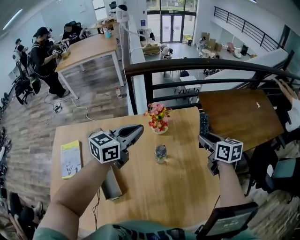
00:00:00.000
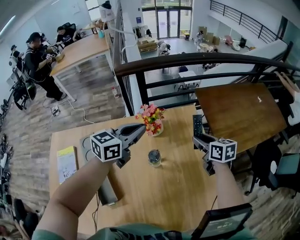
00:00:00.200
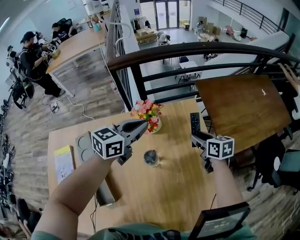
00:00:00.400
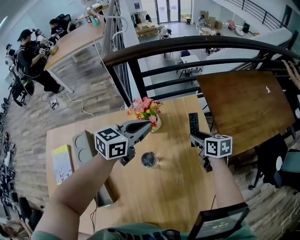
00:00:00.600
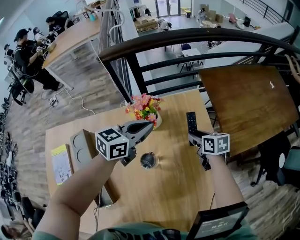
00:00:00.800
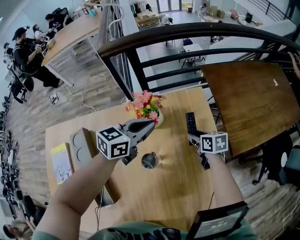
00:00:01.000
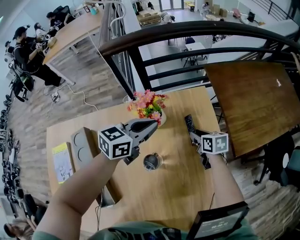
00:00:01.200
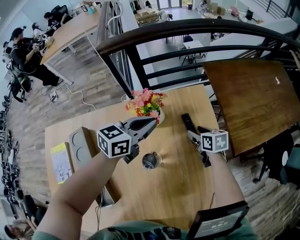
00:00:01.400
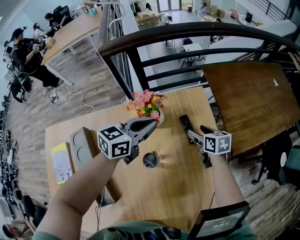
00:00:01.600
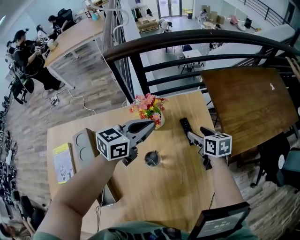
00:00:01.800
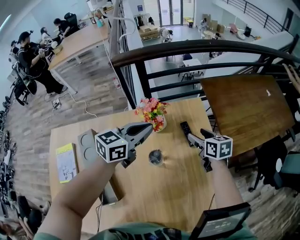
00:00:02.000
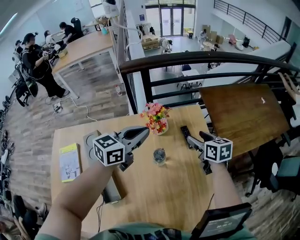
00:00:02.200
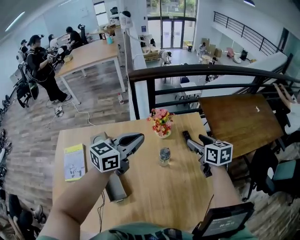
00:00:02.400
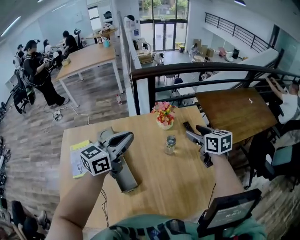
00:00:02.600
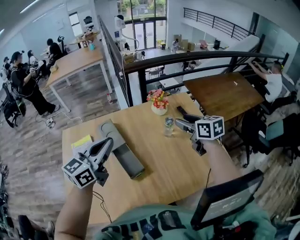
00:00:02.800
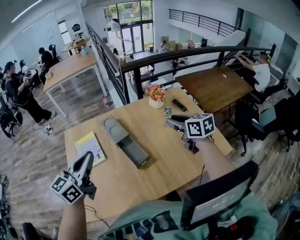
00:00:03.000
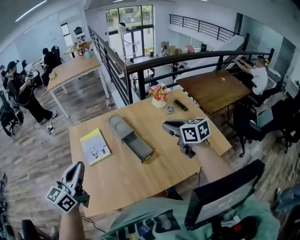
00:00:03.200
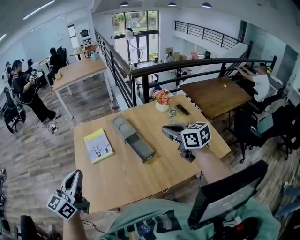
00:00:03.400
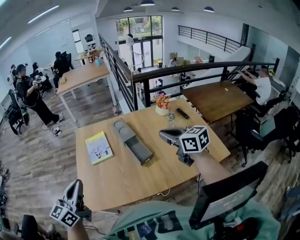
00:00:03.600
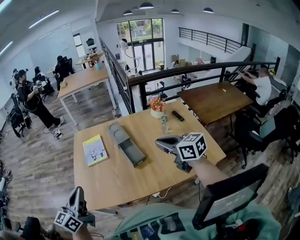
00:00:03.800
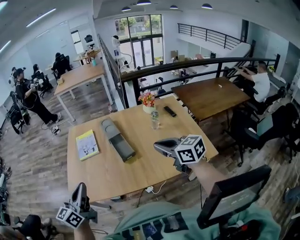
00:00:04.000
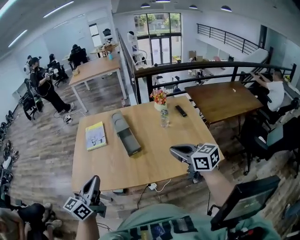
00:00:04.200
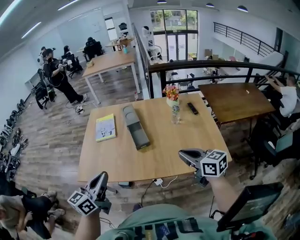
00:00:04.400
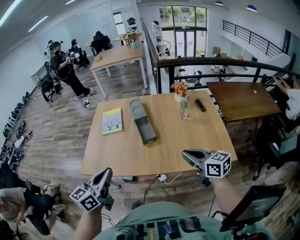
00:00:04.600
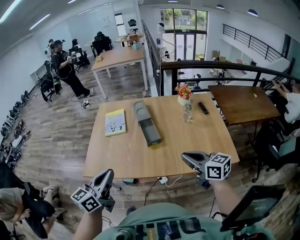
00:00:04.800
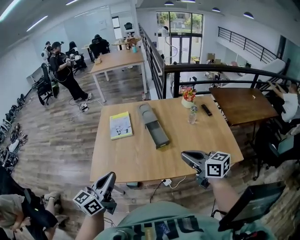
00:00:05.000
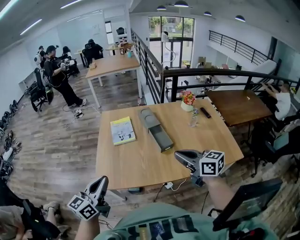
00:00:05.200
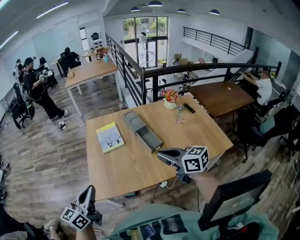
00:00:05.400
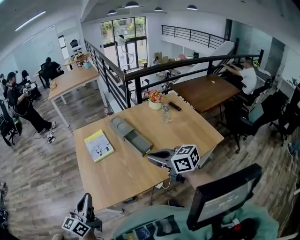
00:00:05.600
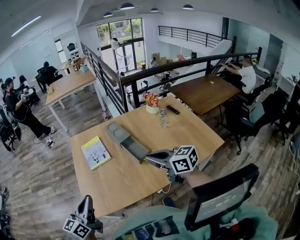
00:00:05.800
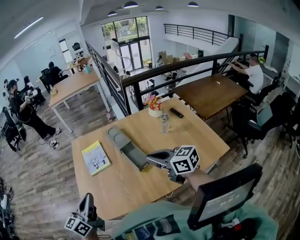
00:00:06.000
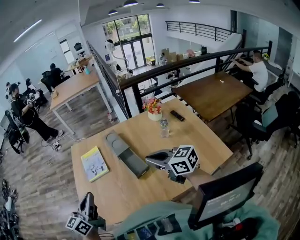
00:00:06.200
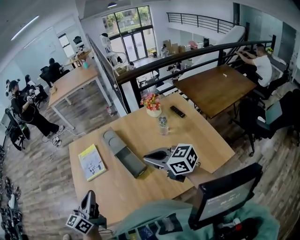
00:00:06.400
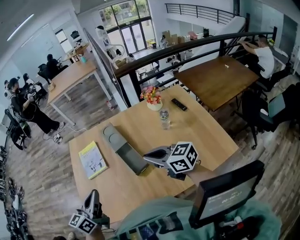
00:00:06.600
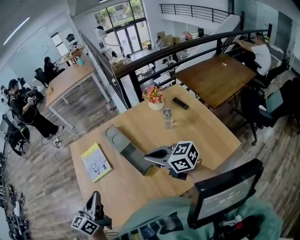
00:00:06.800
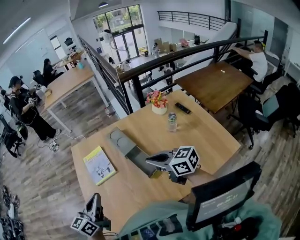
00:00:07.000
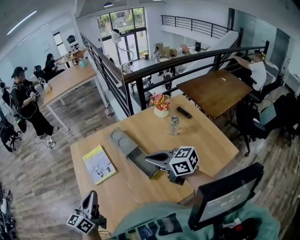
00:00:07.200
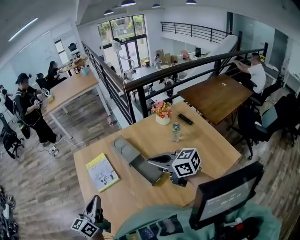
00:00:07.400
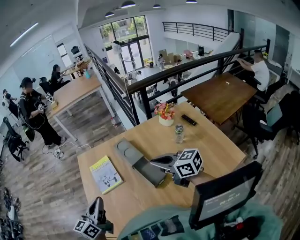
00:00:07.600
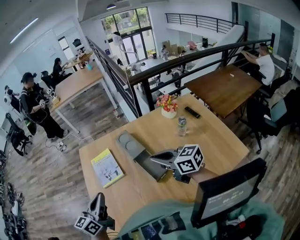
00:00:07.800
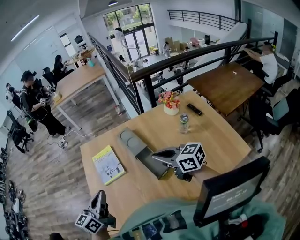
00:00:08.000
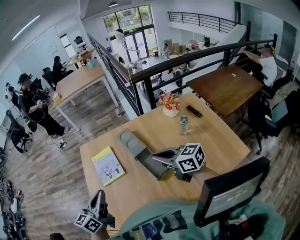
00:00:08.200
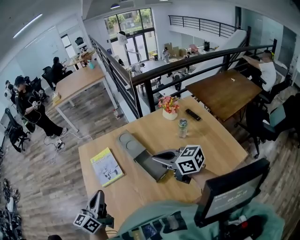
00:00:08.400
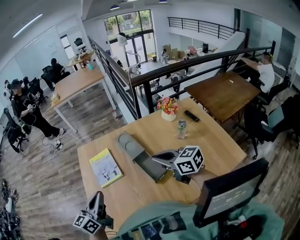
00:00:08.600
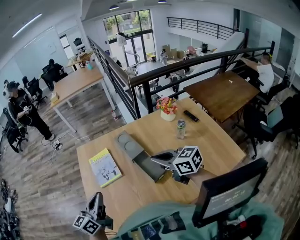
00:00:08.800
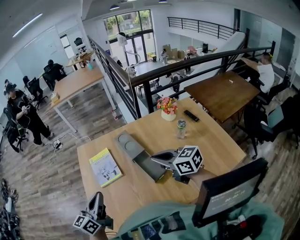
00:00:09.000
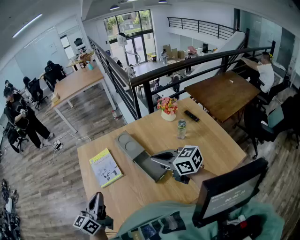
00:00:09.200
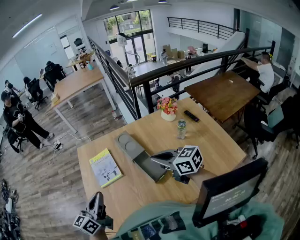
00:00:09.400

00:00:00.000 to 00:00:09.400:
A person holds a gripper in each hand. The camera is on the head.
00:00:00.000 to 00:00:01.600: The left gripper moves downward, forward and to the right, approximately 20 cm, while the right gripper shifts about 20 cm downward and forward, and opens up.
00:00:01.600 to 00:00:03.200: The pair of grippers is taken backward and to the left, roughly 60 cm. The left gripper rotates about 30 degrees, while the right gripper heads upward, covering approximately 30 cm, turns by some 20 degrees, and closes up.
00:00:03.200 to 00:00:04.800: The right gripper is displaced backward by roughly 25 cm, and changes its angle by approximately 20 degrees. The left gripper shifts some 25 cm backward and to the right.
00:00:04.800 to 00:00:06.200: Both grippers travel together forward, some 20 cm. The left gripper reaches about 20 cm to the left, then returns; the right gripper goes to the left and returns, approximately 20 cm each way.
00:00:06.200 to 00:00:07.800: The two grippers go some 10 cm forward. The left gripper travels to the right and back again, about 5 cm each way.
00:00:07.800 to 00:00:09.400: The grippers make only small movements.

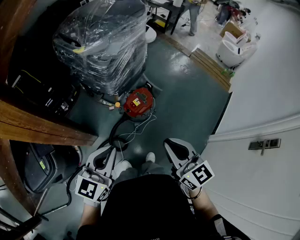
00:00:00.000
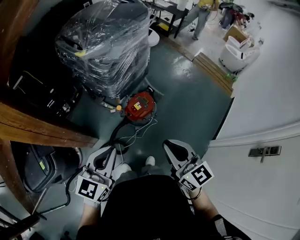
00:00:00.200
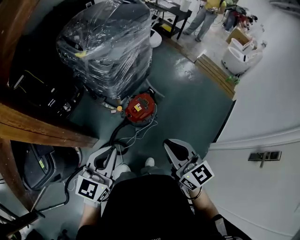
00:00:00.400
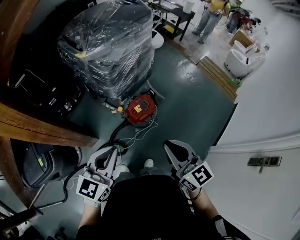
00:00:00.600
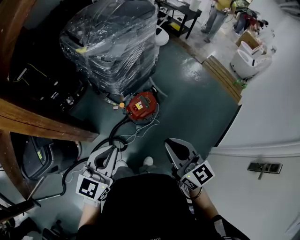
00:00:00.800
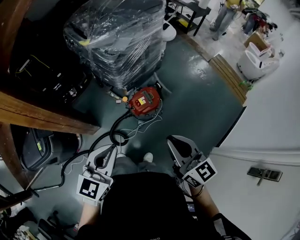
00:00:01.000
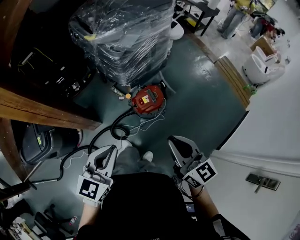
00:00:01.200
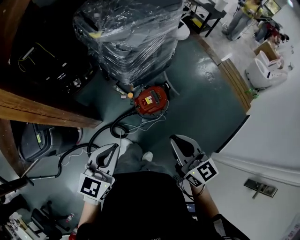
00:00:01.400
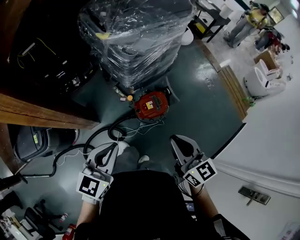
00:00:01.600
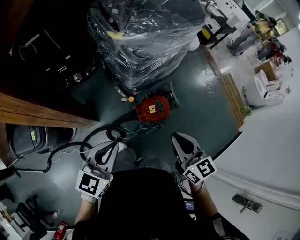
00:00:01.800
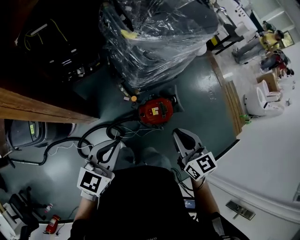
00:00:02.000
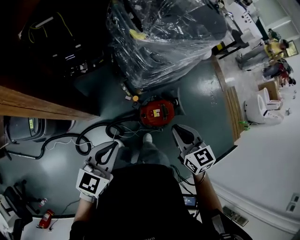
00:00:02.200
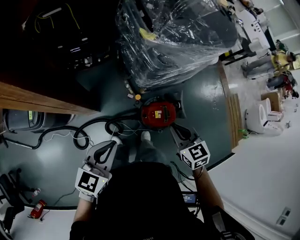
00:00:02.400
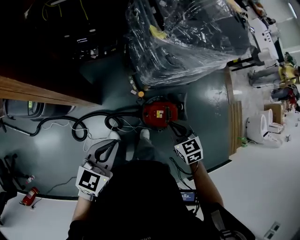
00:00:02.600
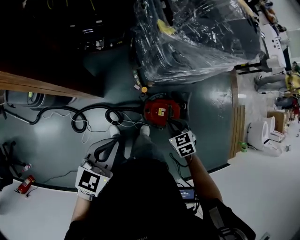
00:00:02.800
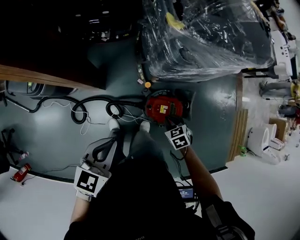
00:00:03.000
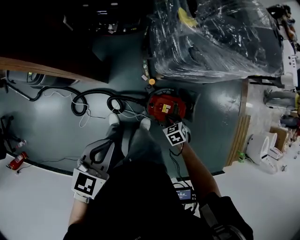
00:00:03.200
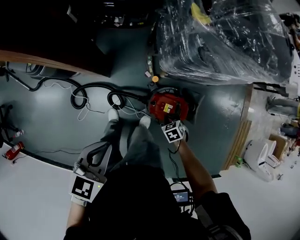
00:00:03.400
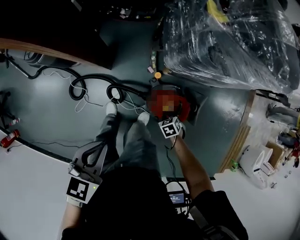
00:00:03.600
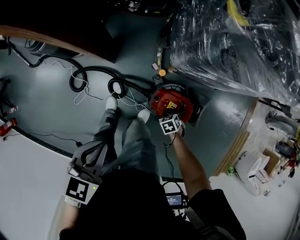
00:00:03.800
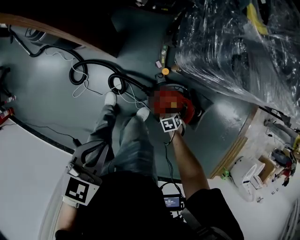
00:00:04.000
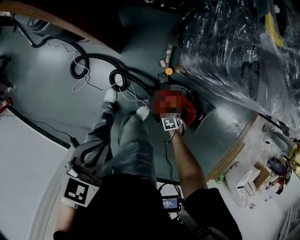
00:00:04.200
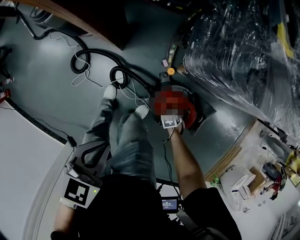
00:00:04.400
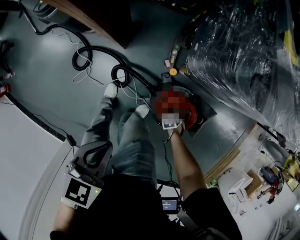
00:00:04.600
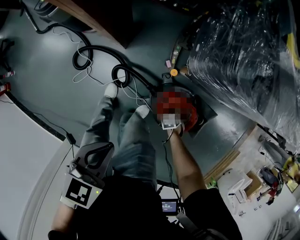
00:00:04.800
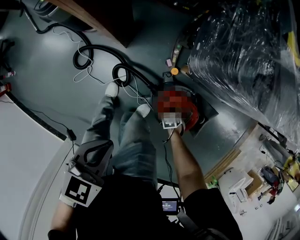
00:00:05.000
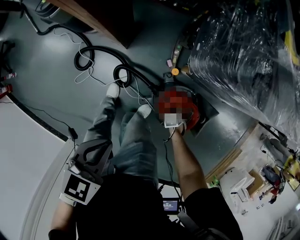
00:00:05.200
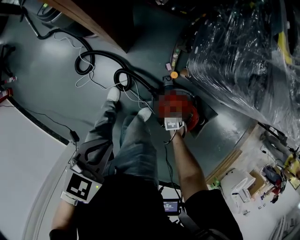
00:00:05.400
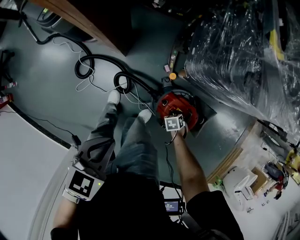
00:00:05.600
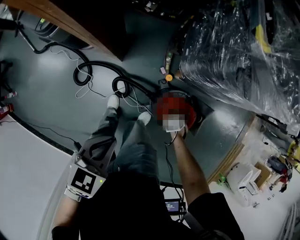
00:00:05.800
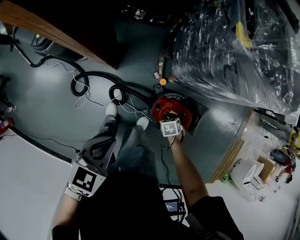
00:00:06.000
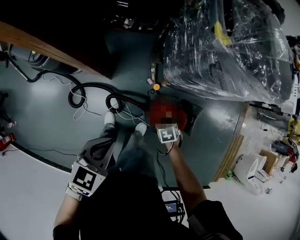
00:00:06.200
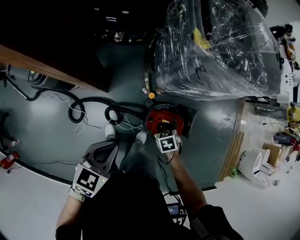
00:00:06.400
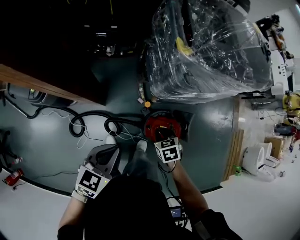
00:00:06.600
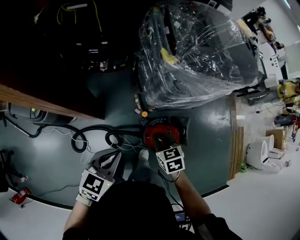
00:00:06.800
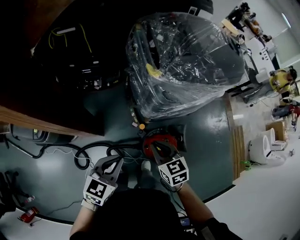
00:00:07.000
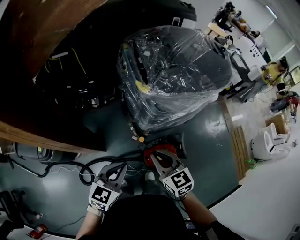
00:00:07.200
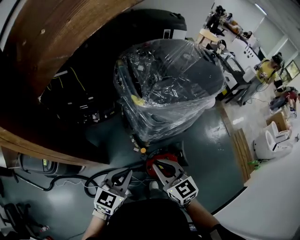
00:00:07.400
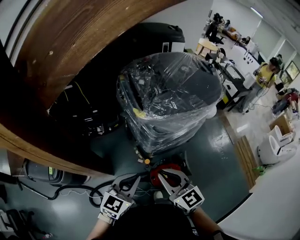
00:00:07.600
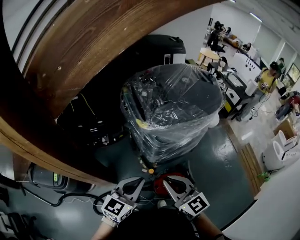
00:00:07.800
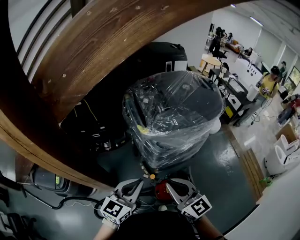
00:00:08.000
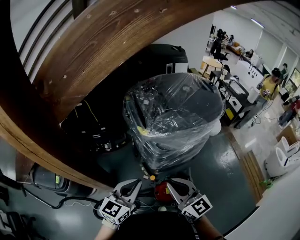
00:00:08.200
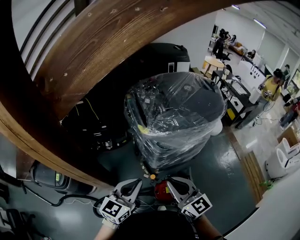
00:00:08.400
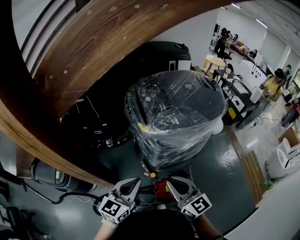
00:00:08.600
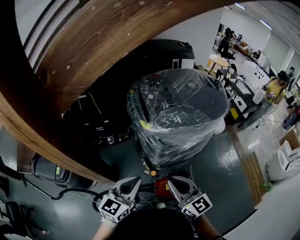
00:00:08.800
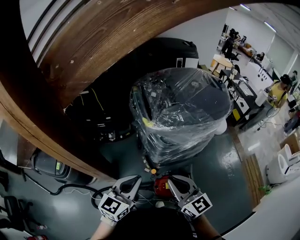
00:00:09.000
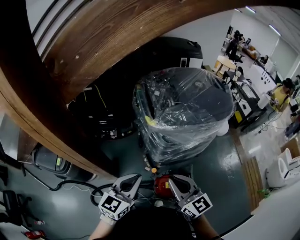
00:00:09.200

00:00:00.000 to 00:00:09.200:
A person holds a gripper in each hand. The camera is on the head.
00:00:00.000 to 00:00:01.600: The left gripper goes approximately 10 cm forward; the right gripper moves forward, about 15 cm.
00:00:01.600 to 00:00:03.000: The right gripper travels downward by approximately 30 cm, and points its fingers about 50 degrees further downward. Meanwhile the left gripper changes place by about 15 cm, and rotates about 30 degrees.
00:00:03.000 to 00:00:04.600: The right gripper heads downward, covering about 35 cm, and swivels some 30 degrees; the left gripper heads downward, covering about 15 cm, and rotates approximately 20 degrees.
00:00:04.600 to 00:00:06.200: The right gripper heads upward, covering roughly 20 cm, while the left gripper goes approximately 5 cm upward.
00:00:06.200 to 00:00:07.600: The left gripper moves upward, some 20 cm, and changes its angle by approximately 40 degrees. The right gripper shifts approximately 50 cm upward, and tips its fingers upward by some 70 degrees.
00:00:07.600 to 00:00:09.200: The right gripper ends up roughly 5 cm from where it was.

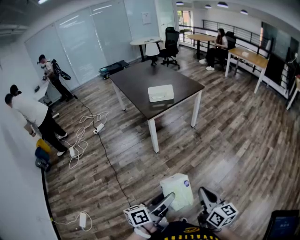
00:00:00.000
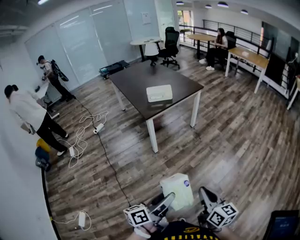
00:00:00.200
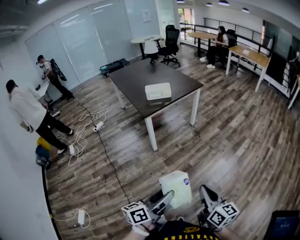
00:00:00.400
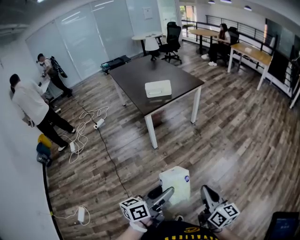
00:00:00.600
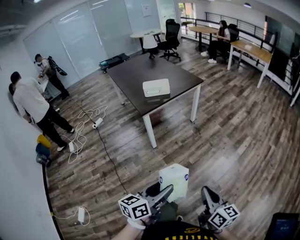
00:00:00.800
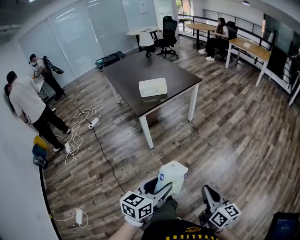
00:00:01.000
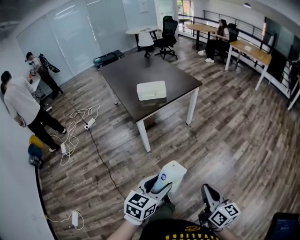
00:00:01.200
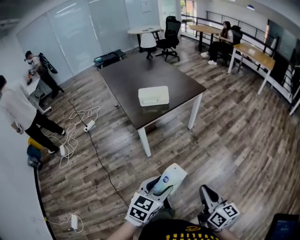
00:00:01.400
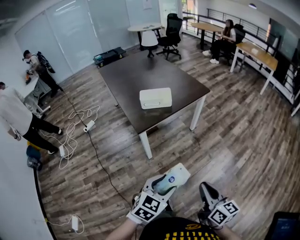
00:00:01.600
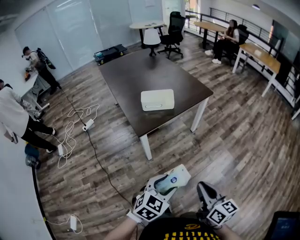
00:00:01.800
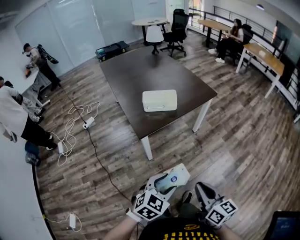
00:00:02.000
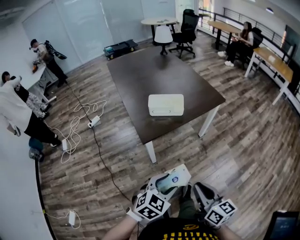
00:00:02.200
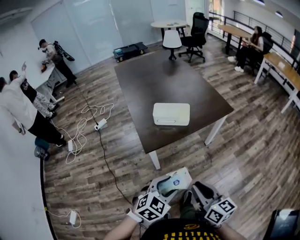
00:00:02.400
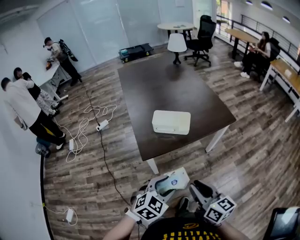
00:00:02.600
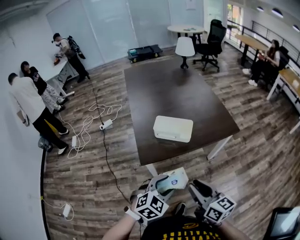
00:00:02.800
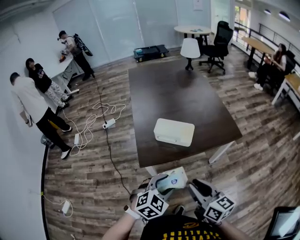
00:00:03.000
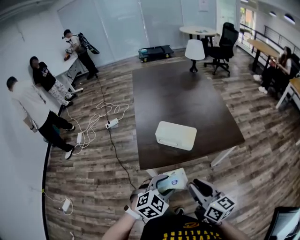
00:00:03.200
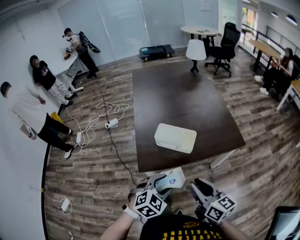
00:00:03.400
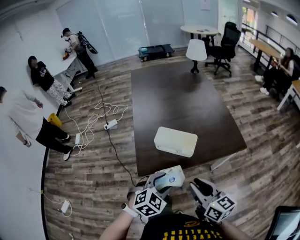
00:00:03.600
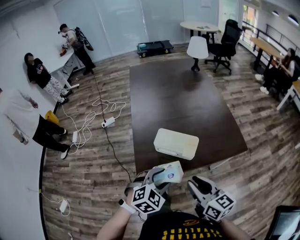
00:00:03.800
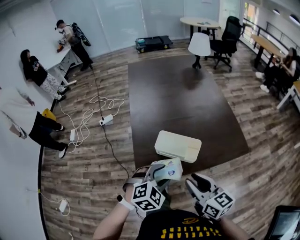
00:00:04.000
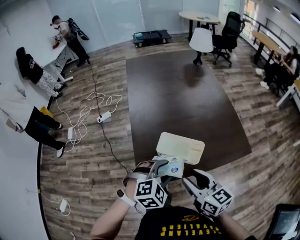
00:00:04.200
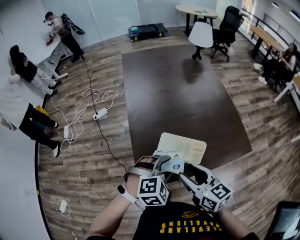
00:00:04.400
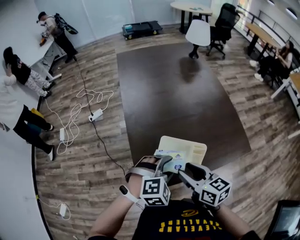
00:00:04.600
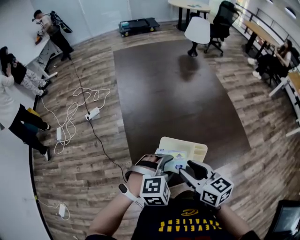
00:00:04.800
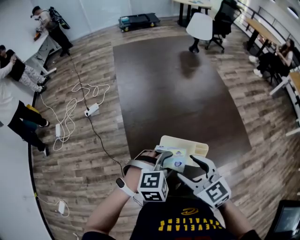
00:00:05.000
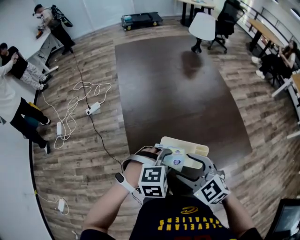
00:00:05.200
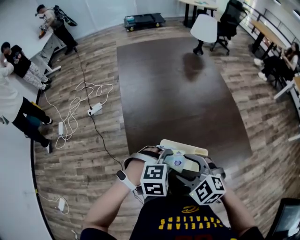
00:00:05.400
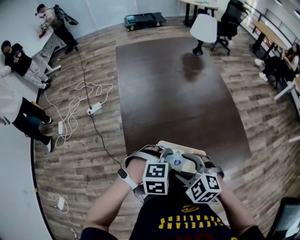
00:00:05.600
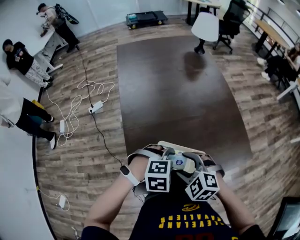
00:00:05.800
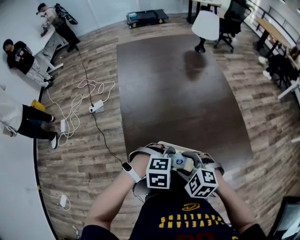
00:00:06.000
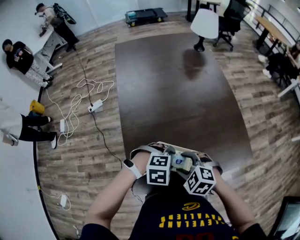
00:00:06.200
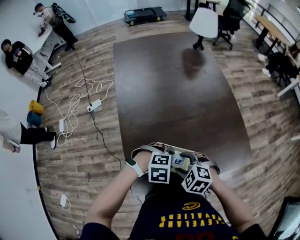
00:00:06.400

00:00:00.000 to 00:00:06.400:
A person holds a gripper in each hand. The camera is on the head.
00:00:00.000 to 00:00:01.600: Both grippers move forward, some 30 cm. The left gripper rotates around the line of its fingers by about 60 degrees, clockwise from behind.
00:00:01.600 to 00:00:03.200: The left gripper shifts by some 35 cm, and swivels roughly 20 degrees. Meanwhile the right gripper shifts by some 40 cm, and rotates approximately 30 degrees.
00:00:03.200 to 00:00:04.800: The two grippers go about 25 cm forward. The left gripper changes its angle by approximately 30 degrees.
00:00:04.800 to 00:00:06.400: Both grippers travel together downward, some 10 cm. The right gripper tilts its fingers approximately 40 degrees downward, while the left gripper turns by some 30 degrees.
